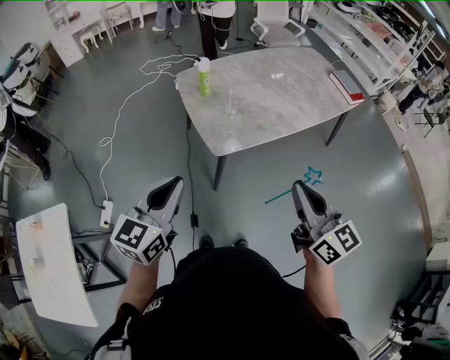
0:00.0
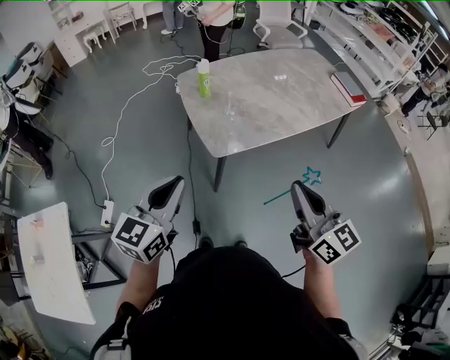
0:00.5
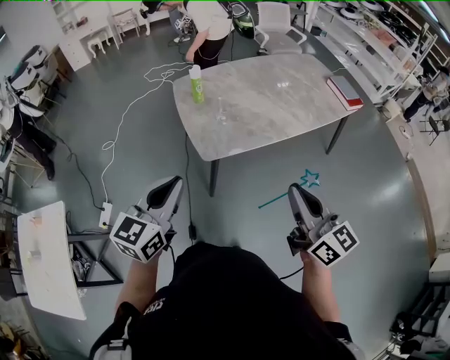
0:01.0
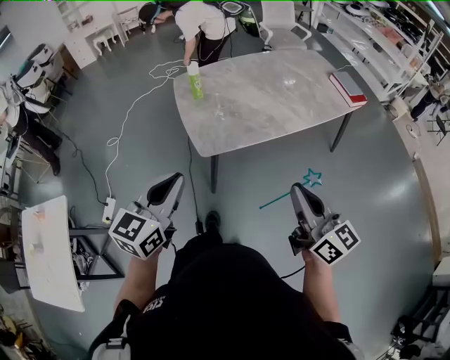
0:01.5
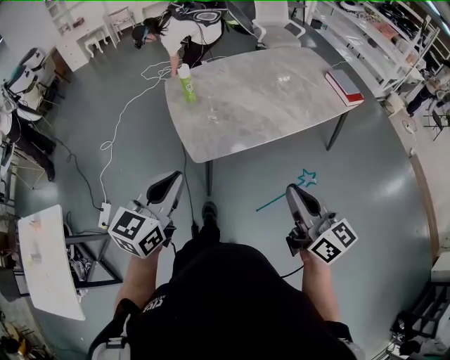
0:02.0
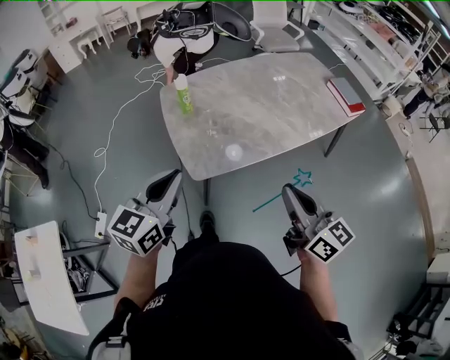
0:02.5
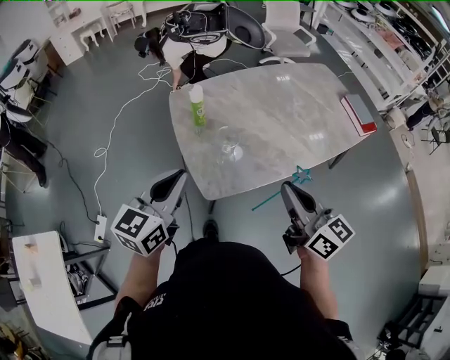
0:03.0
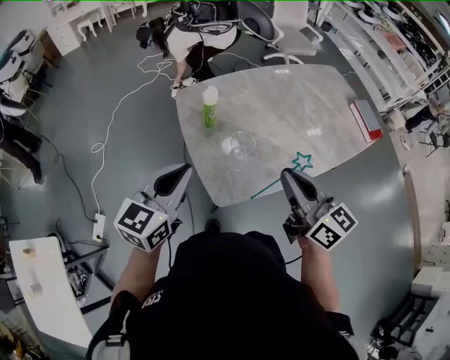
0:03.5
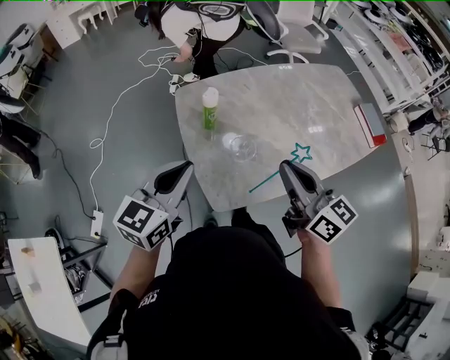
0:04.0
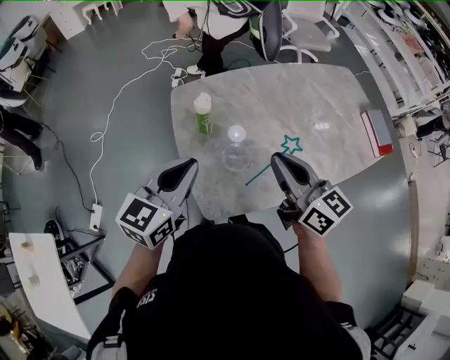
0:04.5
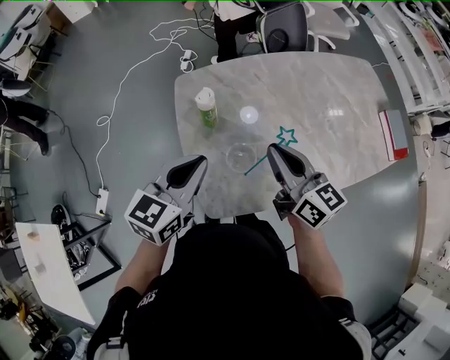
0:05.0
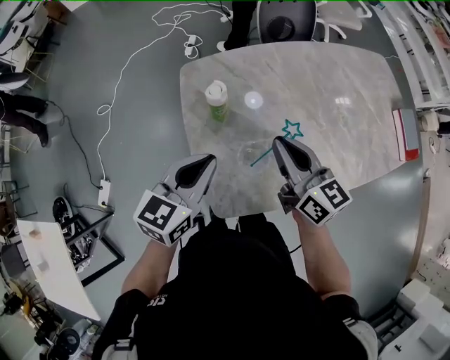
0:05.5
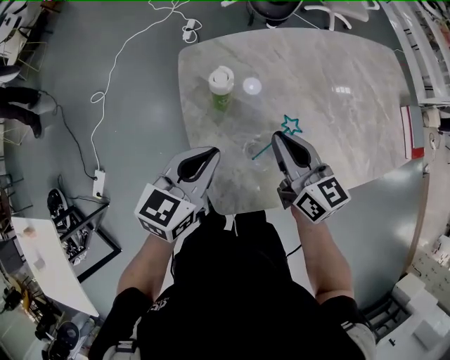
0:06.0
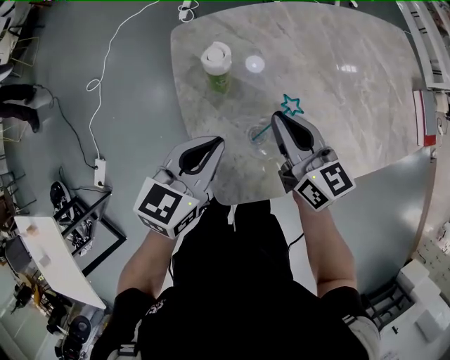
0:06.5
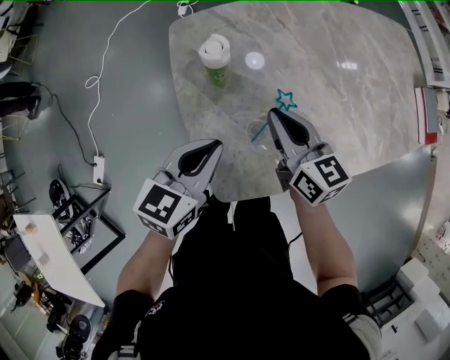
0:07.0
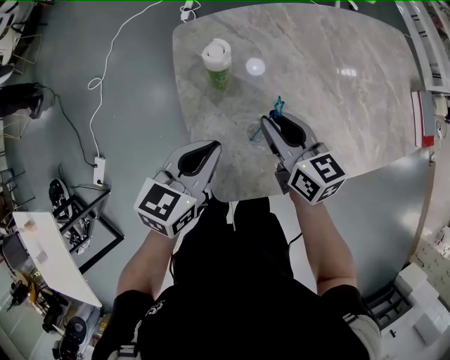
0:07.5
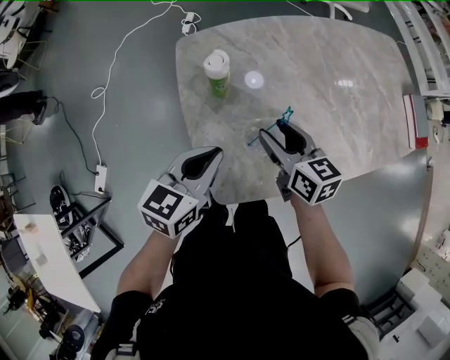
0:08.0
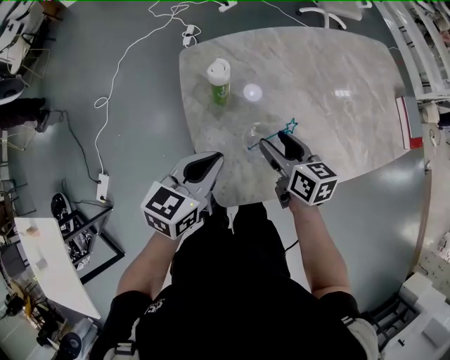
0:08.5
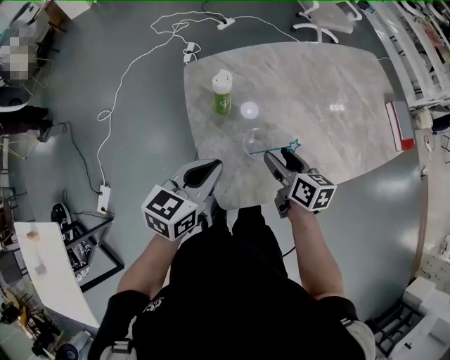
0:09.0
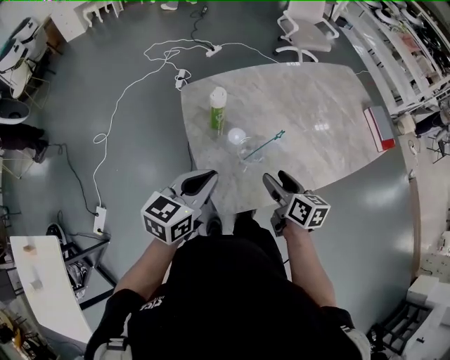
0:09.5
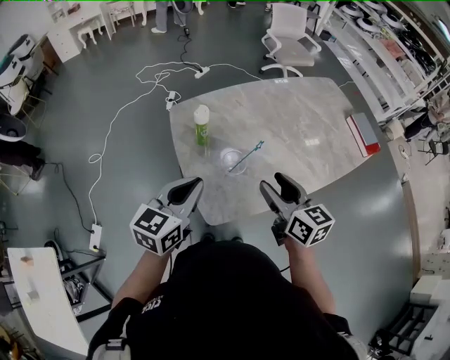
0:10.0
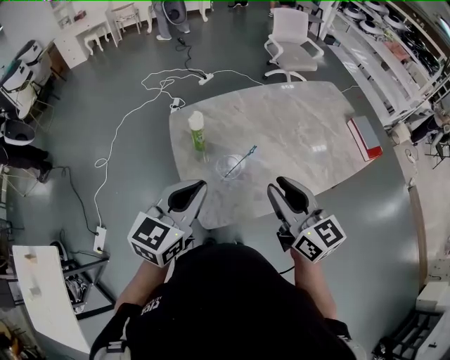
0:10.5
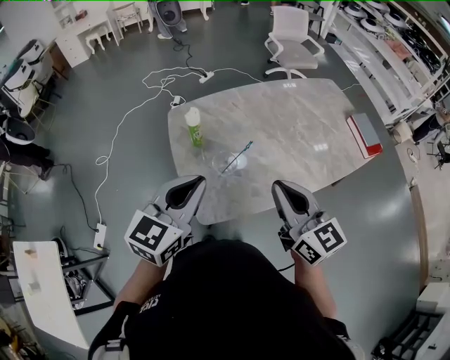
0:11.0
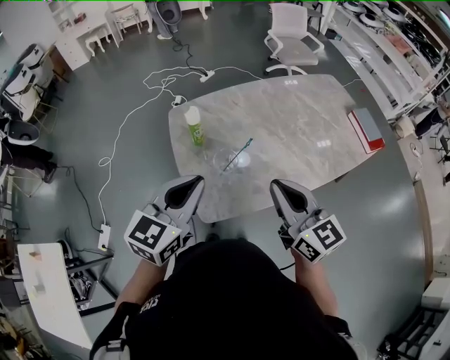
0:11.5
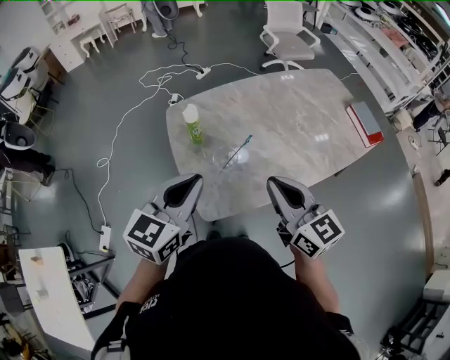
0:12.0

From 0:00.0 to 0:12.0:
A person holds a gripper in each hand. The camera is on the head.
From 0:00.0 to 0:02.0: The two grippers go about 10 cm to the right.
From 0:02.0 to 0:04.0: The right gripper heads forward and to the left, covering approximately 35 cm, while the left gripper travels forward by roughly 30 cm.
From 0:04.0 to 0:06.0: The left gripper goes some 15 cm downward and forward. The right gripper is displaced forward and downward by about 25 cm.
From 0:06.0 to 0:08.0: The right gripper goes about 5 cm downward, and opens.
From 0:08.0 to 0:10.0: The right gripper goes some 20 cm upward, backward and to the right; the left gripper heads upward and backward, covering roughly 15 cm.
From 0:10.0 to 0:12.0: The right gripper heads upward, covering roughly 5 cm, and closes, while the left gripper is displaced upward and to the right by some 10 cm.

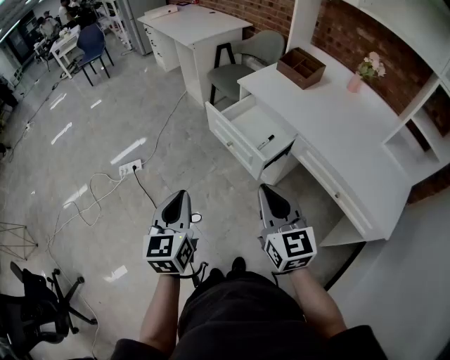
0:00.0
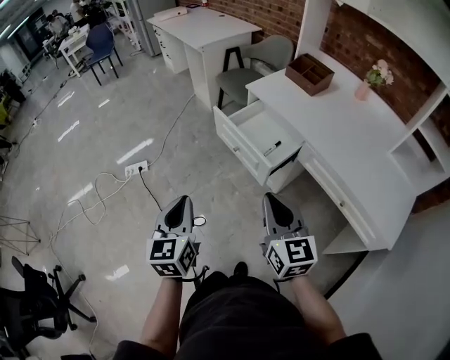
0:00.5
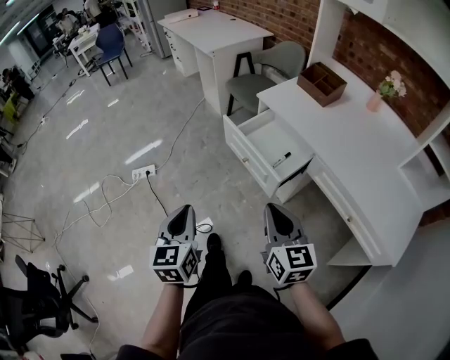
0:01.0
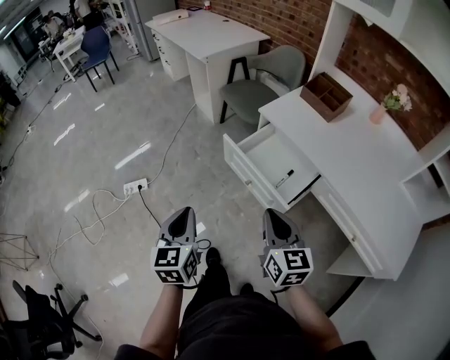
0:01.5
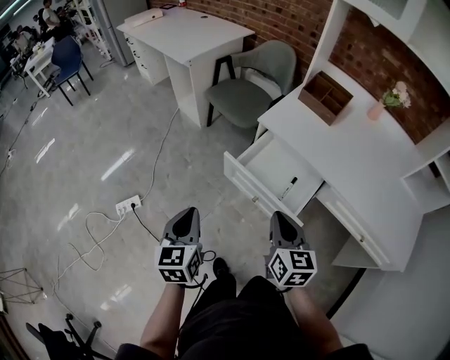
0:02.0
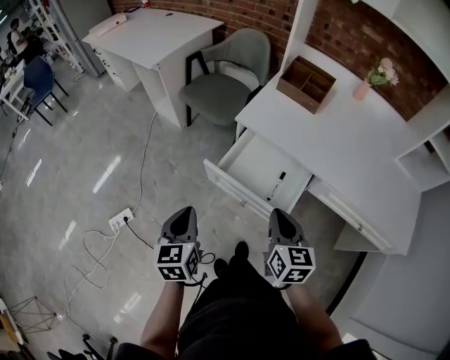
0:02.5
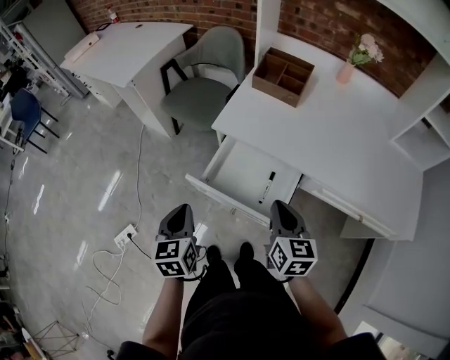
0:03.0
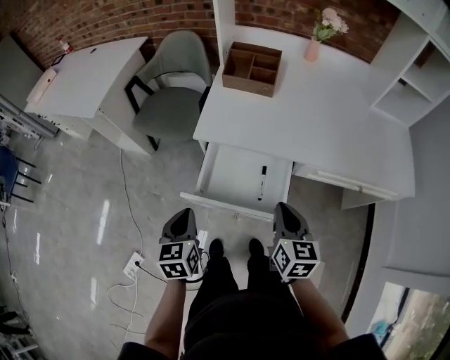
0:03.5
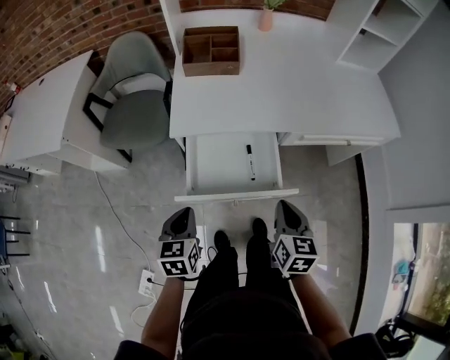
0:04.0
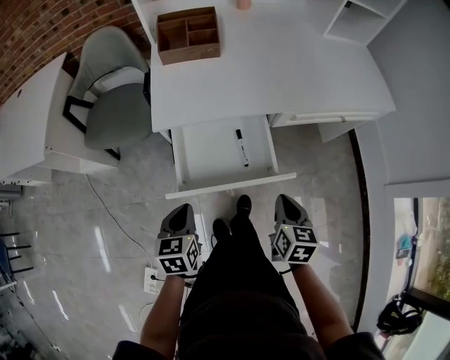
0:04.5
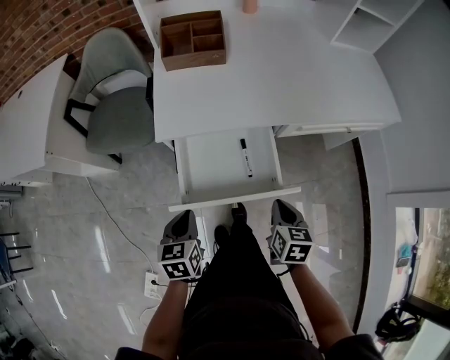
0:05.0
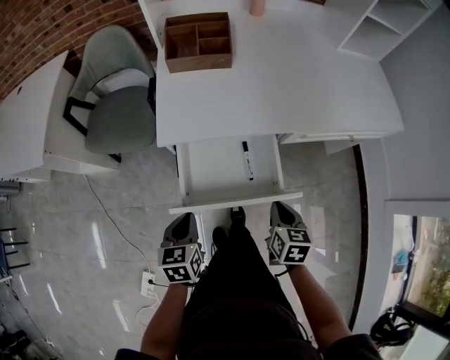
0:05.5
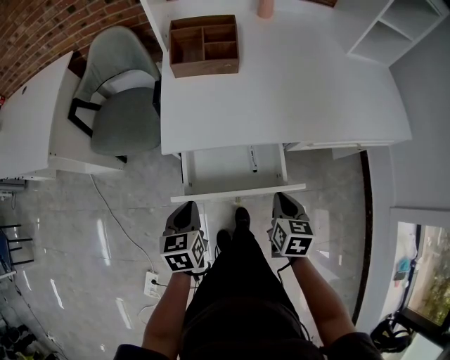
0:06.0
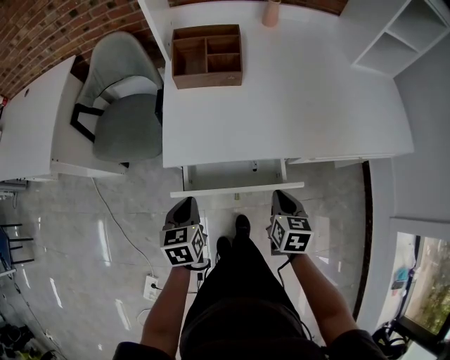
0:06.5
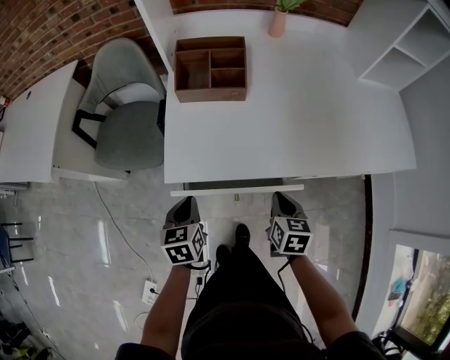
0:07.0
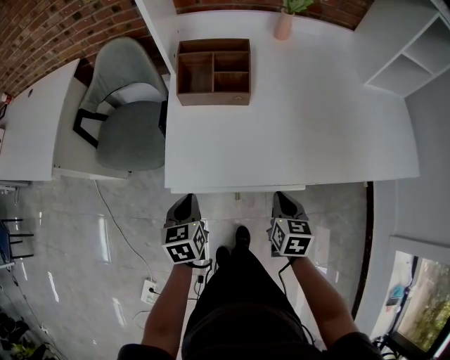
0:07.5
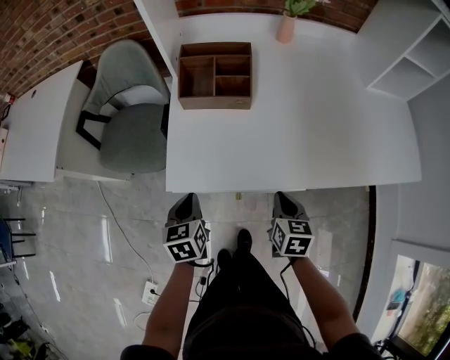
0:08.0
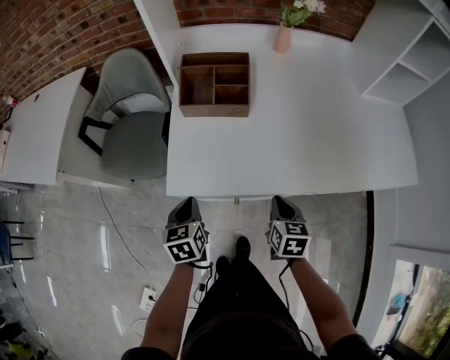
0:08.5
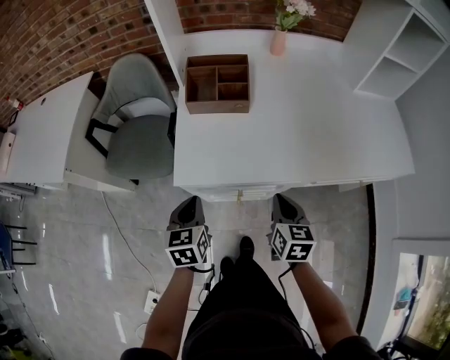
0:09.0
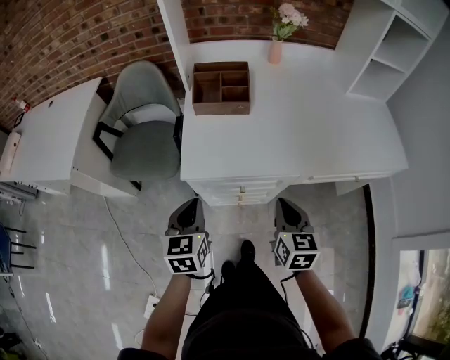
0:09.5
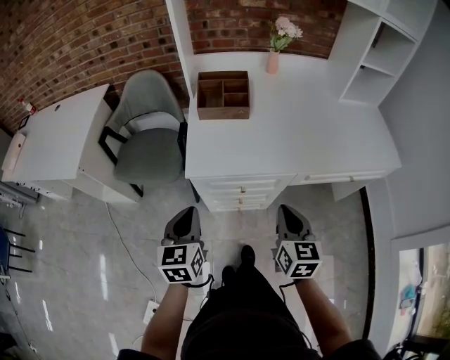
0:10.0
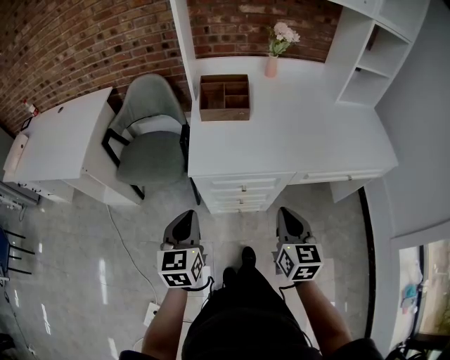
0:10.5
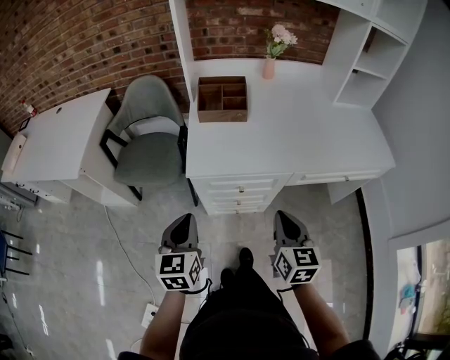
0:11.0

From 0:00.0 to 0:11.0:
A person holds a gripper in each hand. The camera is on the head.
From 0:00.0 to 0:02.0: The two grippers go some 25 cm forward. The right gripper swivels approximately 30 degrees.
From 0:02.0 to 0:03.5: The right gripper ends up about 15 cm from where it was, and swivels about 30 degrees, while the left gripper moves roughly 20 cm, and turns by about 30 degrees.
From 0:03.5 to 0:05.5: Both grippers travel together downward, approximately 10 cm. The left gripper turns by roughly 20 degrees. Meanwhile the right gripper swivels about 30 degrees.
From 0:05.5 to 0:07.5: The two grippers go some 20 cm forward.
From 0:07.5 to 0:09.0: Both grippers move upward, approximately 5 cm.
From 0:09.0 to 0:11.0: The two grippers go about 15 cm backward and upward.

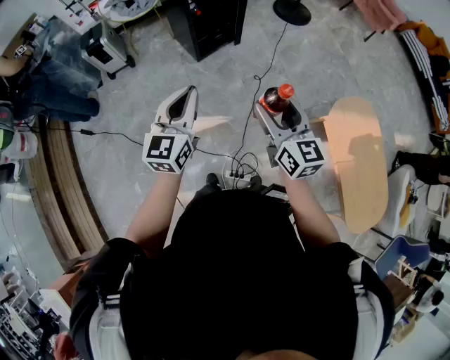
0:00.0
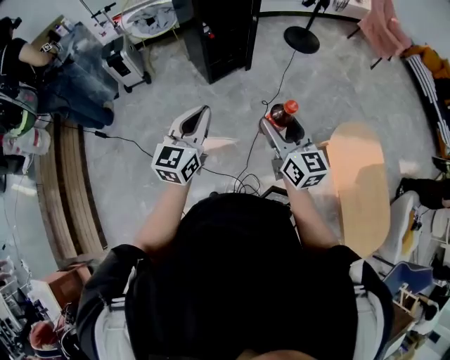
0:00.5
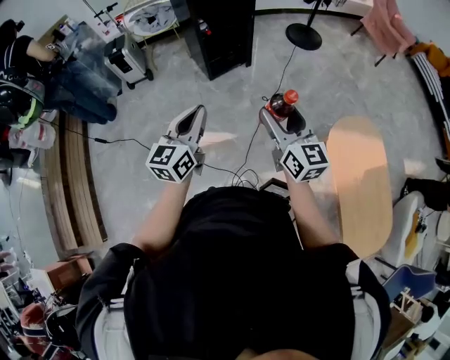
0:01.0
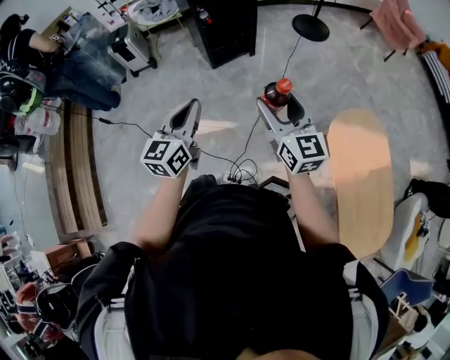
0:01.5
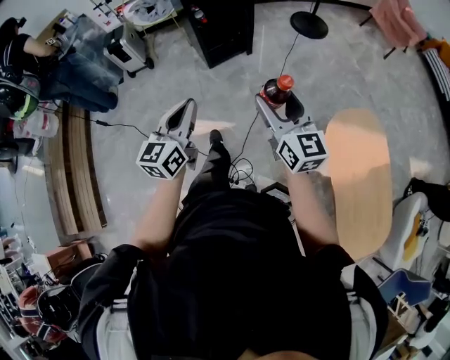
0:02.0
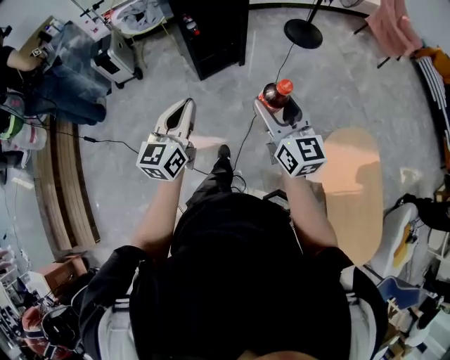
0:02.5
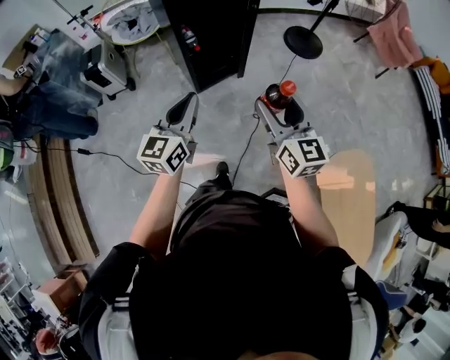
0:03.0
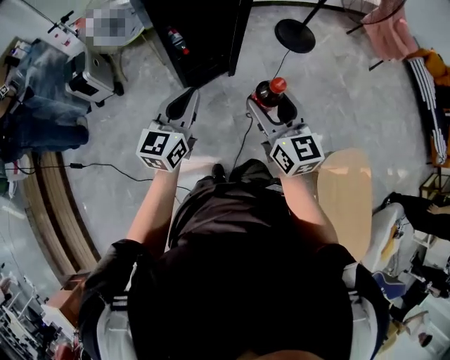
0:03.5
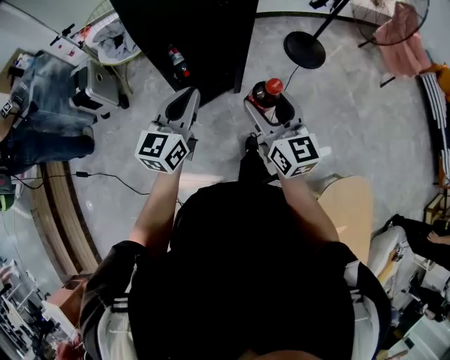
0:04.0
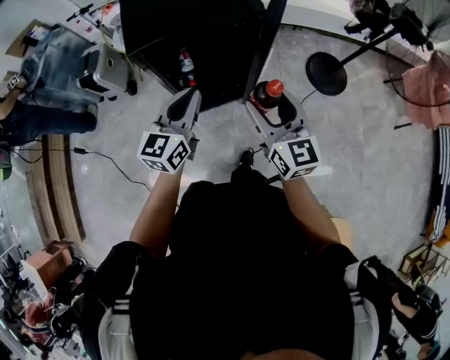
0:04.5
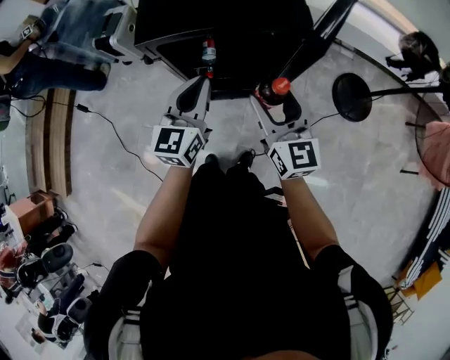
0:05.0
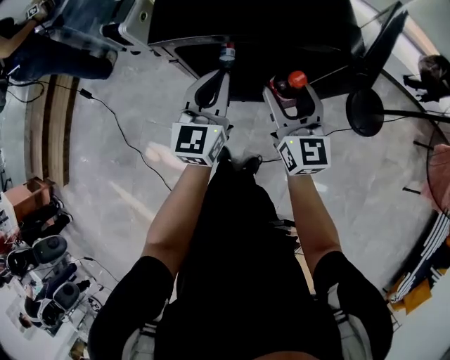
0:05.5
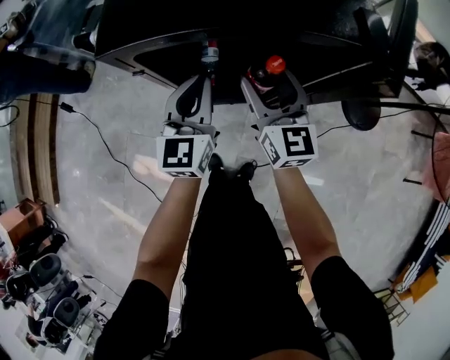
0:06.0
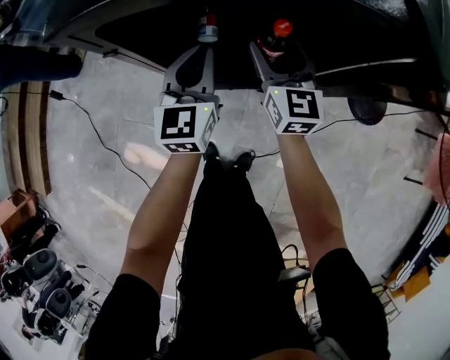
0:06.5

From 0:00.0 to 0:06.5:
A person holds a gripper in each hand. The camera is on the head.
From 0:00.0 to 0:02.0: The right gripper moves to the right, approximately 15 cm. The left gripper heads to the right and backward, covering about 15 cm.
From 0:02.0 to 0:04.5: Both grippers are carried forward, approximately 70 cm.
From 0:04.5 to 0:06.5: The right gripper heads forward and downward, covering about 40 cm. Meanwhile the left gripper travels downward and forward by approximately 30 cm, and rotates roughly 30 degrees.
